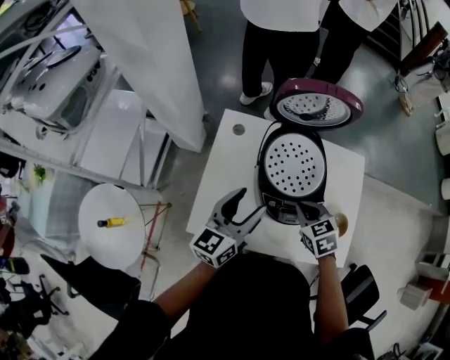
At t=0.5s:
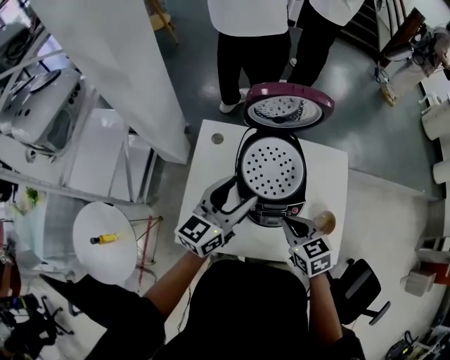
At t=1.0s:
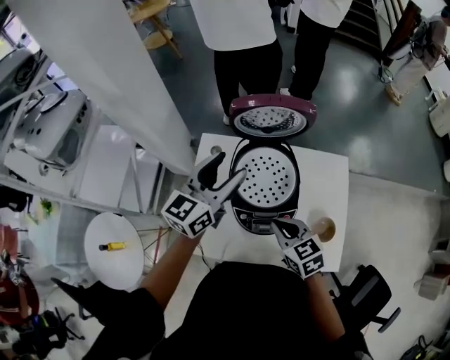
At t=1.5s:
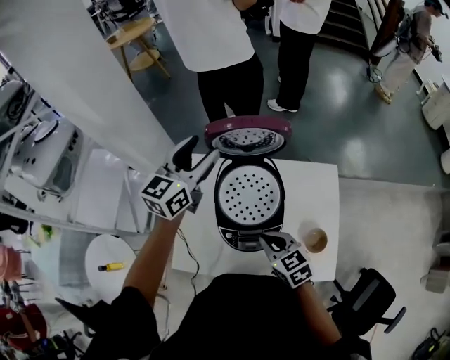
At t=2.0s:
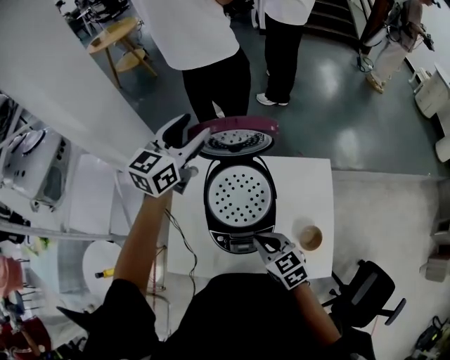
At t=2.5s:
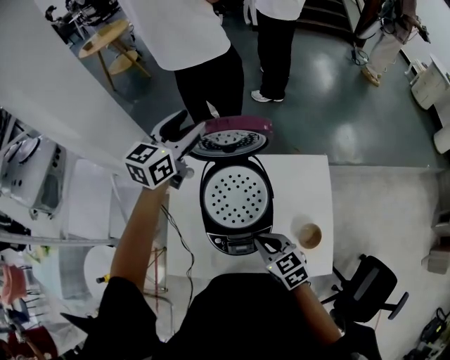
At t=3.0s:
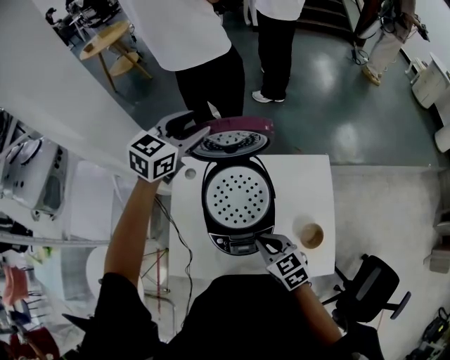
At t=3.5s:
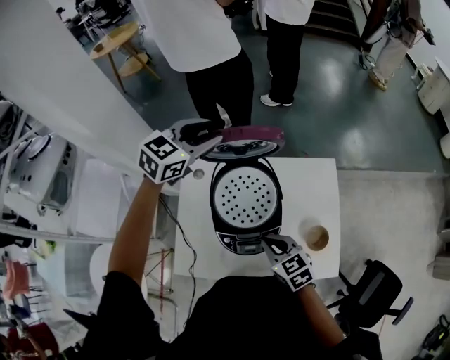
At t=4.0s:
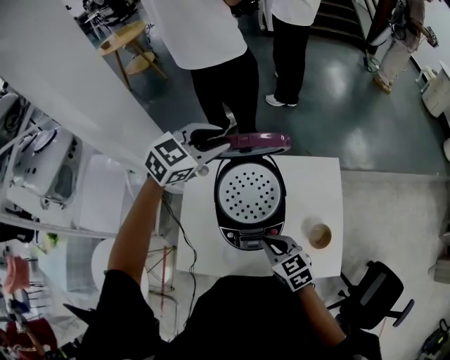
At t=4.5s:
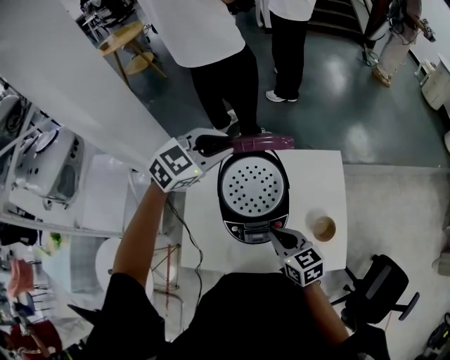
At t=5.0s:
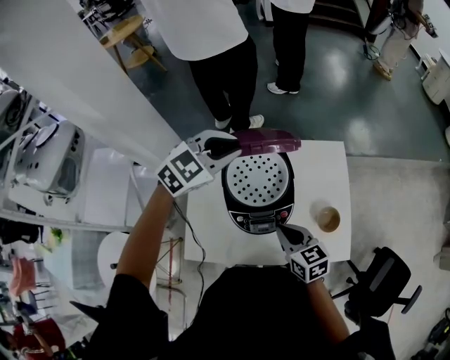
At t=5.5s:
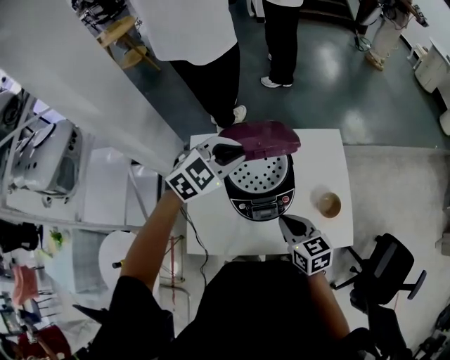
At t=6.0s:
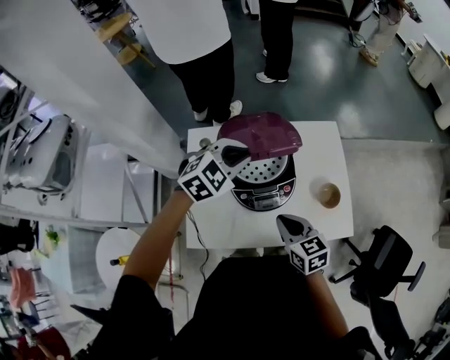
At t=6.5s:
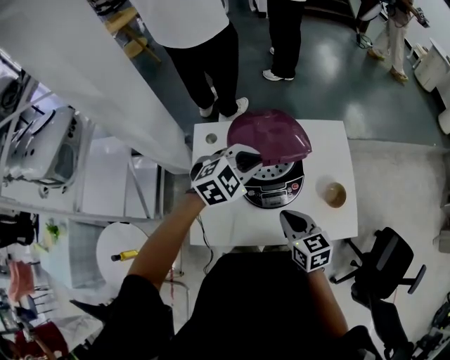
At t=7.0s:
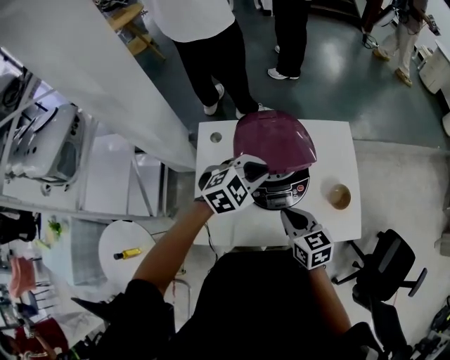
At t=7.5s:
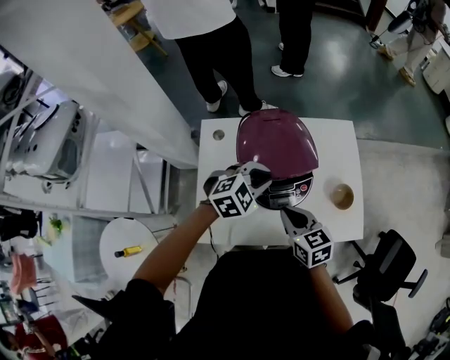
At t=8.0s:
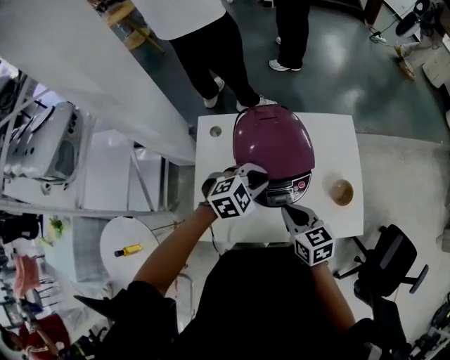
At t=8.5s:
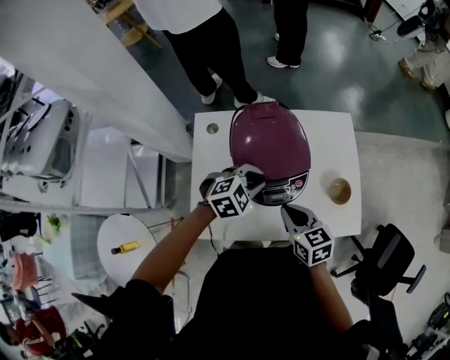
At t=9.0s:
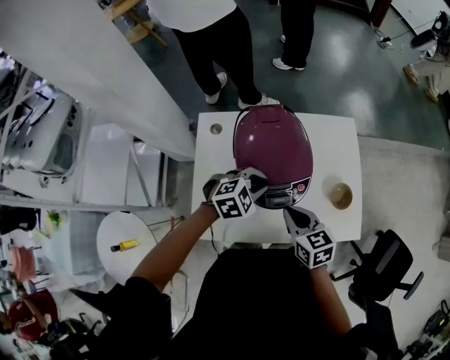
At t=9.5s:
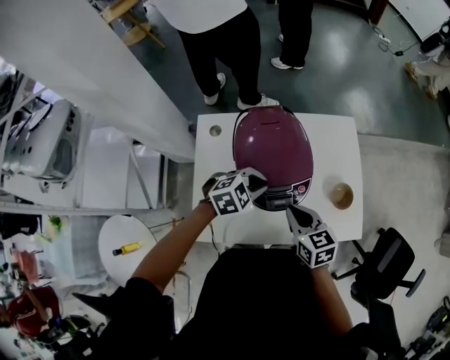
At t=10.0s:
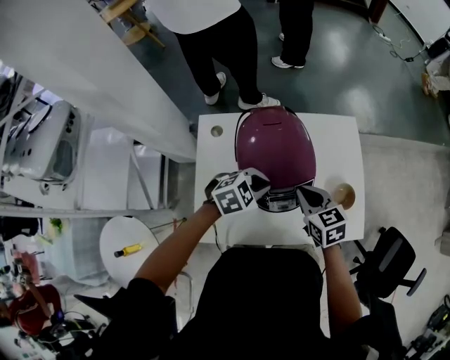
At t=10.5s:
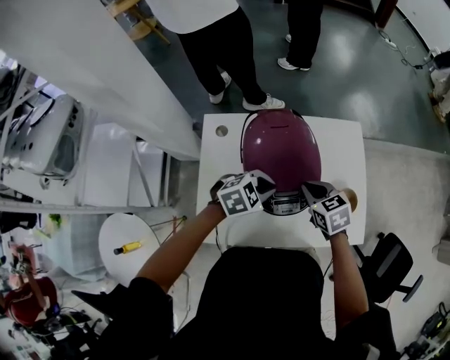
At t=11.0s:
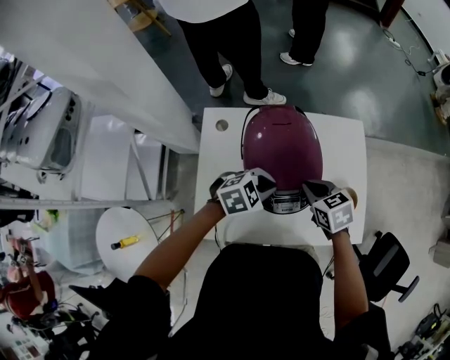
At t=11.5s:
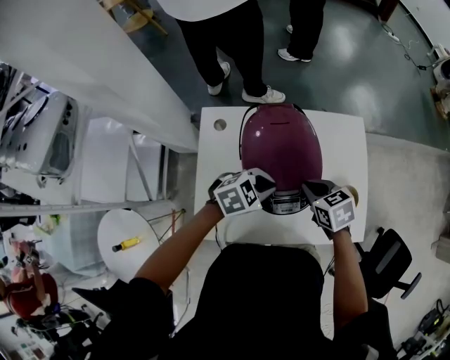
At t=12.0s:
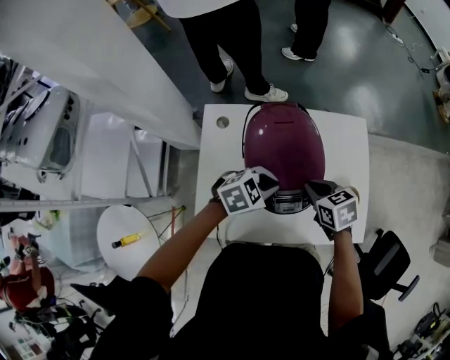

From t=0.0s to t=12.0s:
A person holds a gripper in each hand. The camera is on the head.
From t=0.0s to t=2.0s: The right gripper ends up some 5 cm from where it was; the left gripper travels forward and upward by some 30 cm, and turns by approximately 20 degrees.
From t=2.0s to t=4.0s: The left gripper moves some 5 cm, swivels about 40 degrees, and closes.
From t=4.0s to t=6.0s: The right gripper travels backward by approximately 5 cm, while the left gripper shifts some 15 cm backward and downward.
From t=6.0s to t=8.0s: The left gripper shifts some 10 cm downward and backward.
From t=8.0s to t=10.0s: The right gripper travels forward by about 10 cm.
From t=10.0s to t=12.0s: There are only small adjustments of the grippers.

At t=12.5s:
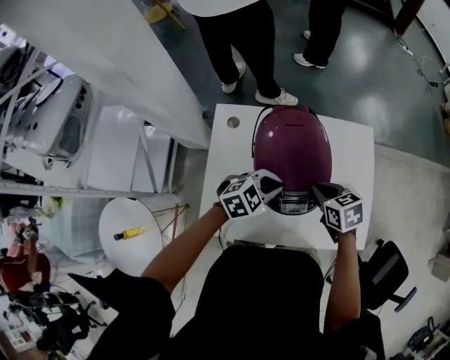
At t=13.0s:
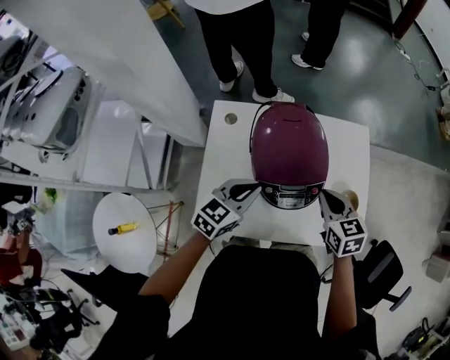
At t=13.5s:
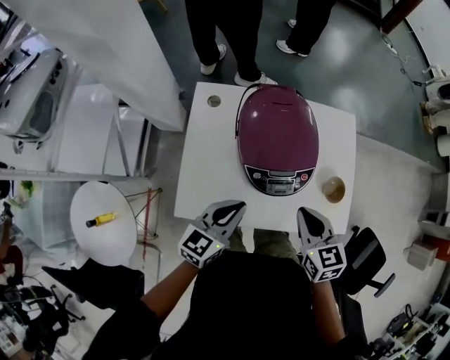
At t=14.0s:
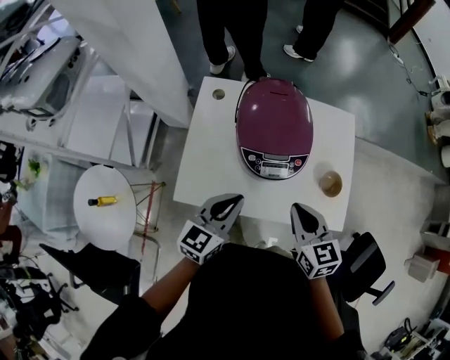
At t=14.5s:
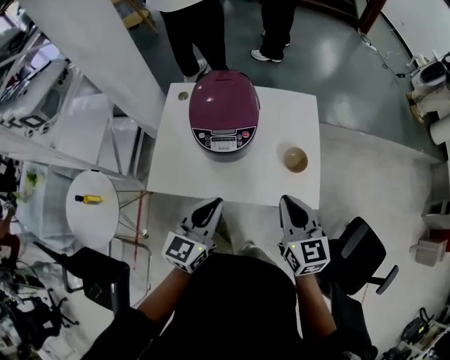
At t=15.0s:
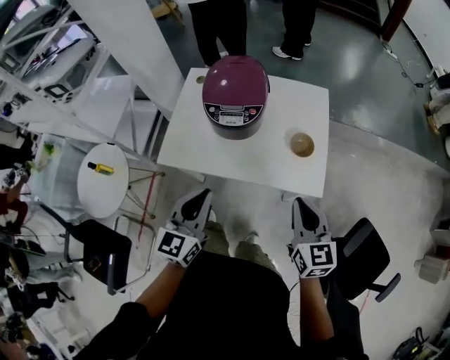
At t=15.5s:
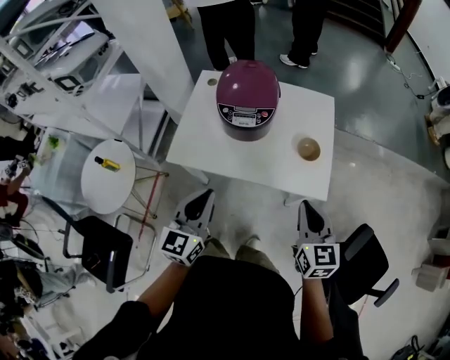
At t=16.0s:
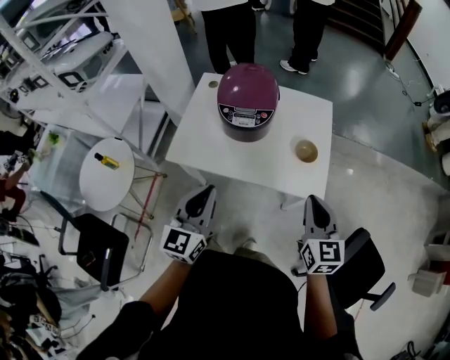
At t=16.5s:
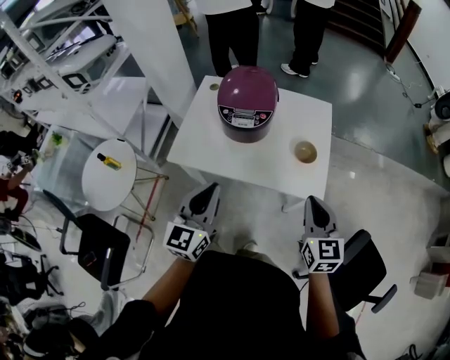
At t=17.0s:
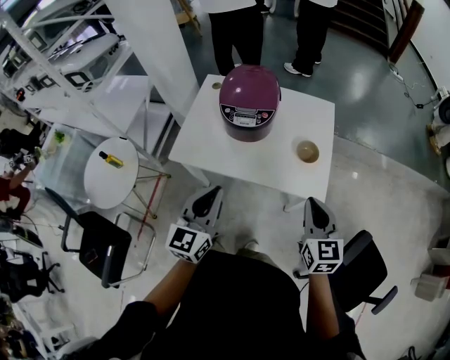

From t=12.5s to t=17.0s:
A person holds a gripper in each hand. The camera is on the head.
From t=12.5s to t=14.5s: The right gripper travels backward, to the right and upward by roughly 30 cm, and tips its fingers upward by roughly 30 degrees, while the left gripper shifts some 25 cm backward and upward, and turns by approximately 50 degrees.
From t=14.5s to t=17.0s: The right gripper shifts about 10 cm backward and to the right, while the left gripper is displaced backward by roughly 10 cm.

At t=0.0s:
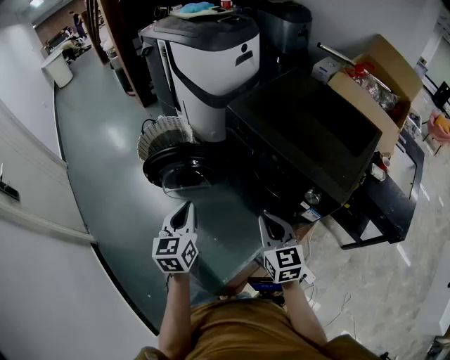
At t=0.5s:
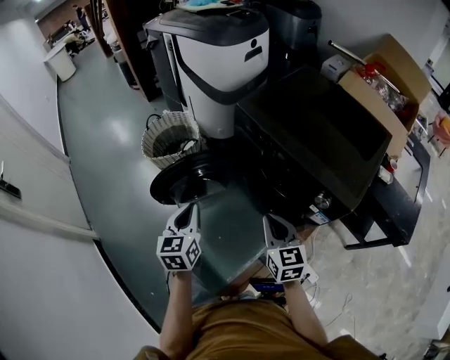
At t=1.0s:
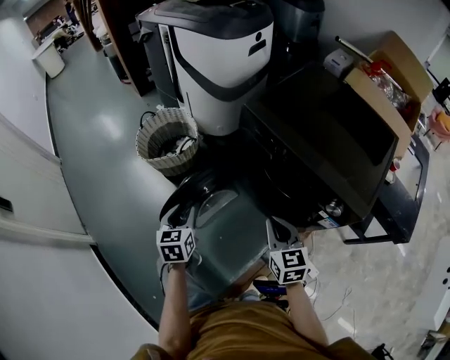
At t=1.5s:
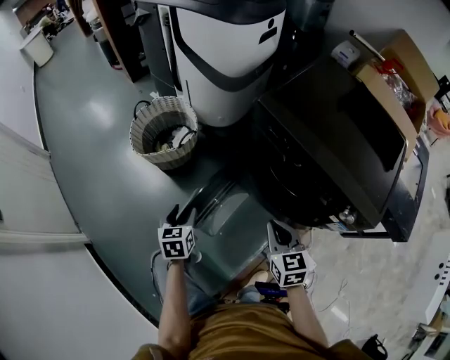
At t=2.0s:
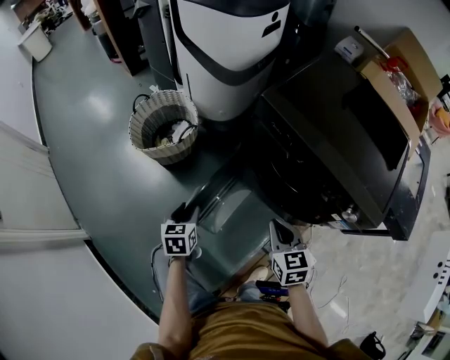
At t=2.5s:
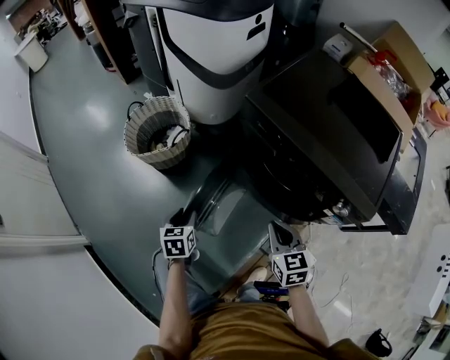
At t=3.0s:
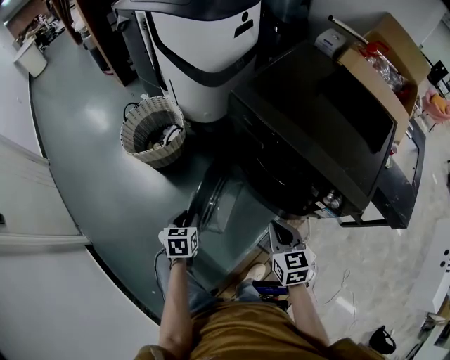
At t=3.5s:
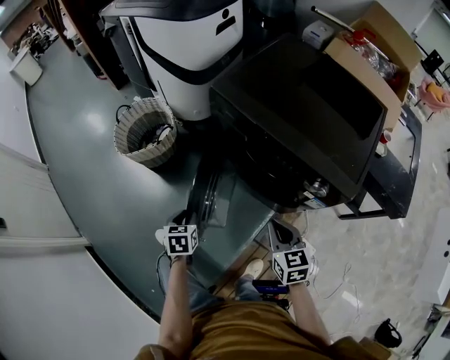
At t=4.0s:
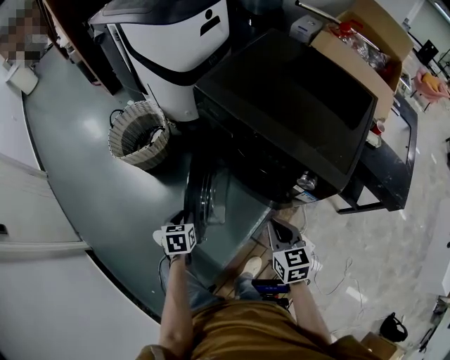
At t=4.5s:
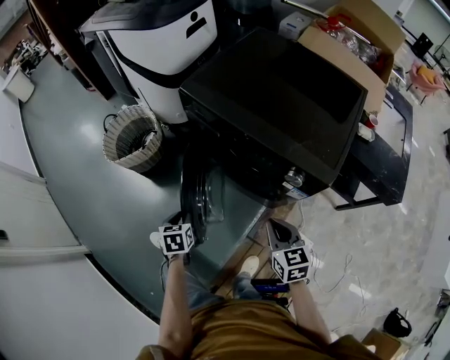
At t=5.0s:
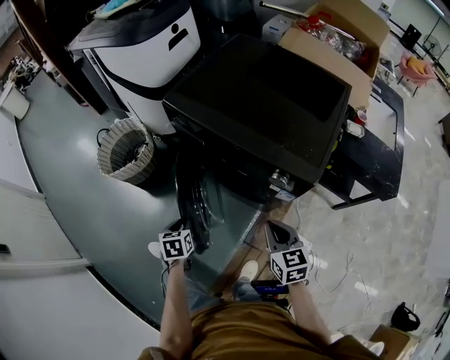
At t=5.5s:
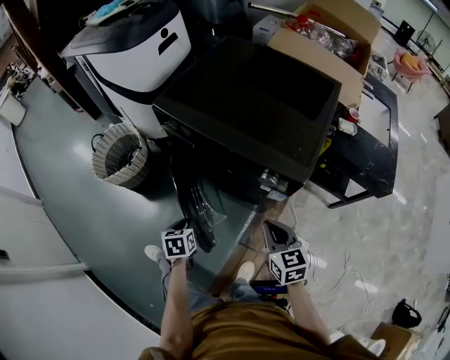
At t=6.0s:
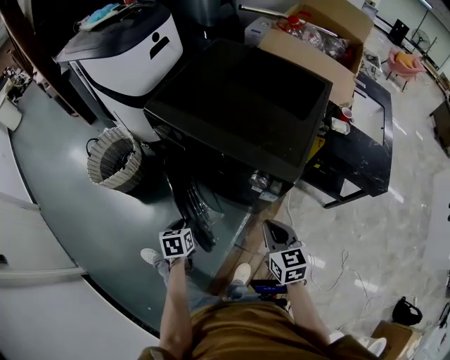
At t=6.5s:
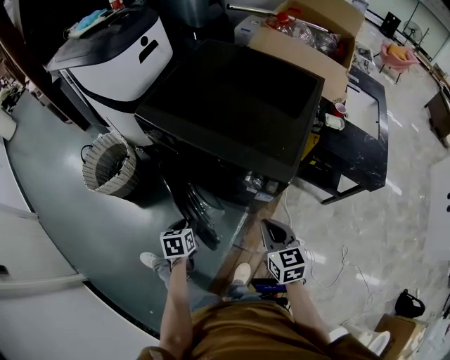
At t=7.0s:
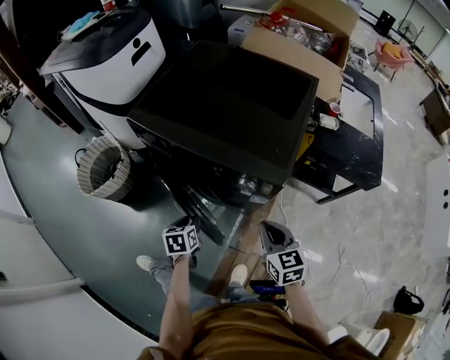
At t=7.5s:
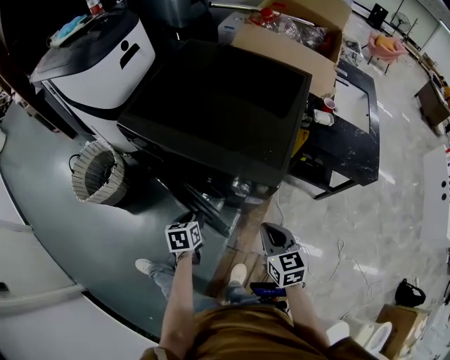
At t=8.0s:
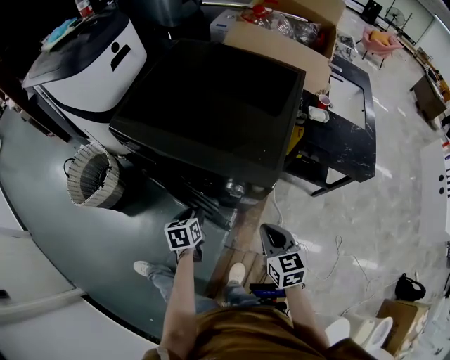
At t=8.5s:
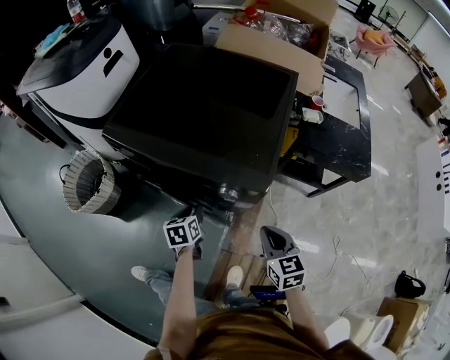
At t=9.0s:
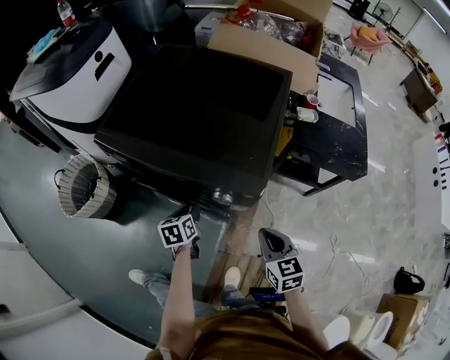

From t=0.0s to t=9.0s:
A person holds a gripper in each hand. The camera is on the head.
From t=0.0s to t=2.0s: The right gripper goes approximately 15 cm downward, forward and to the left, while the left gripper moves downward, forward and to the left, approximately 30 cm, changes its angle by roughly 30 degrees, and opens up.
From t=2.0s to t=4.5s: The grippers both shift to the right and backward by about 20 cm.
From t=4.5s to t=7.0s: The right gripper is displaced to the right by approximately 10 cm. Meanwhile the left gripper shifts about 15 cm to the right.
From t=7.0s to t=9.0s: The right gripper travels to the right by approximately 5 cm. The left gripper heads forward and to the right, covering some 10 cm.

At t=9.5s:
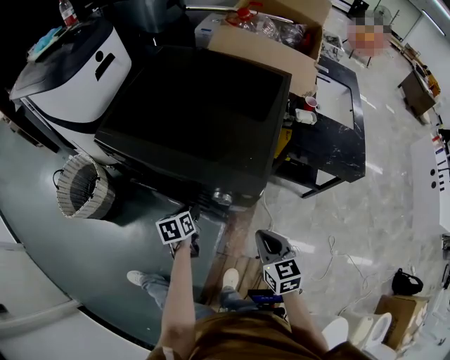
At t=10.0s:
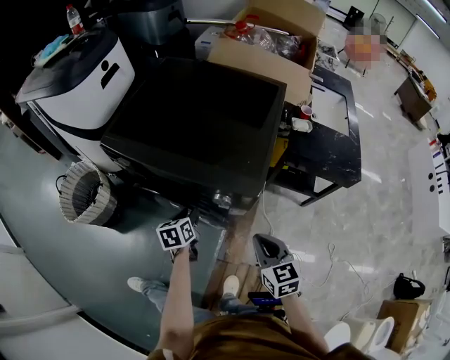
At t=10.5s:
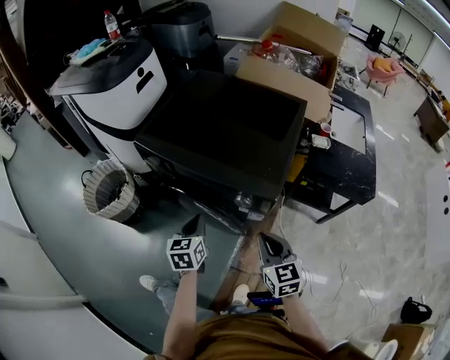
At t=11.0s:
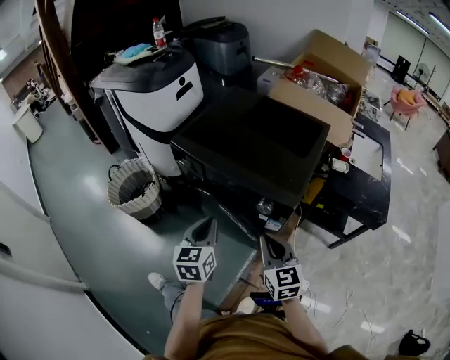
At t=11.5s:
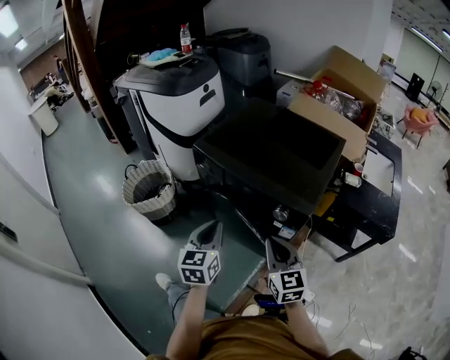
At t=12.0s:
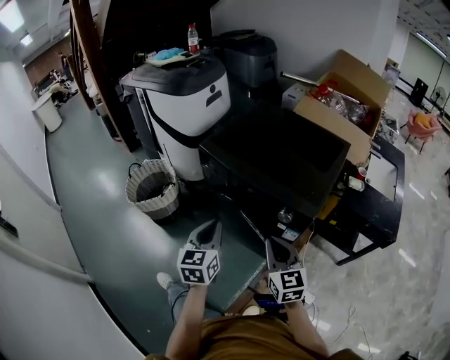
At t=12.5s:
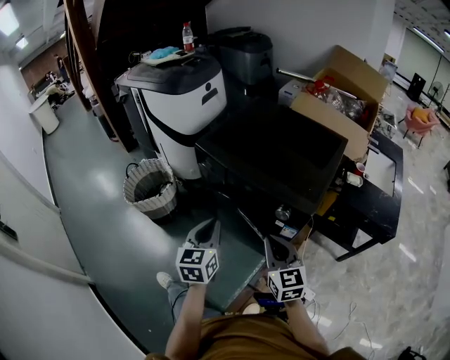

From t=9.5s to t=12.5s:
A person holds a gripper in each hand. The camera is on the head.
From t=9.5s to t=11.0s: The left gripper is displaced upward and backward by some 25 cm, swivels some 40 degrees, and closes. The right gripper moves upward and to the left, roughly 15 cm, and turns by approximately 20 degrees.
From t=11.0s to t=12.5s: The right gripper moves some 5 cm. The left gripper heads to the left, covering some 5 cm.
